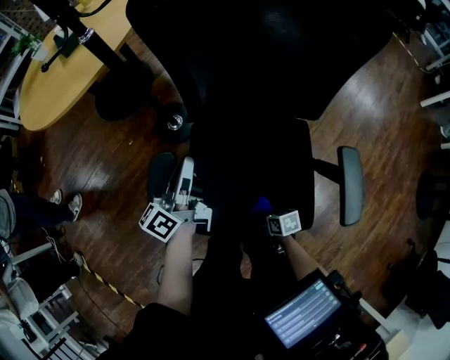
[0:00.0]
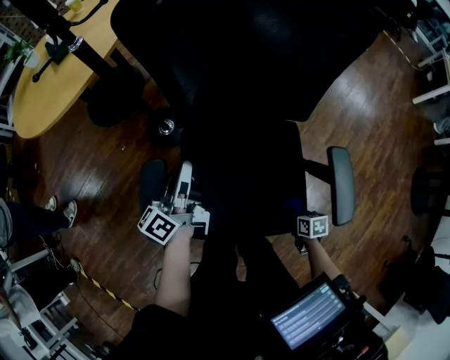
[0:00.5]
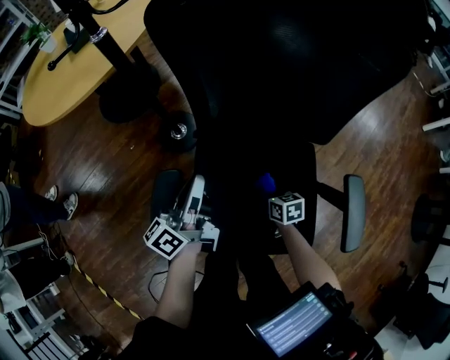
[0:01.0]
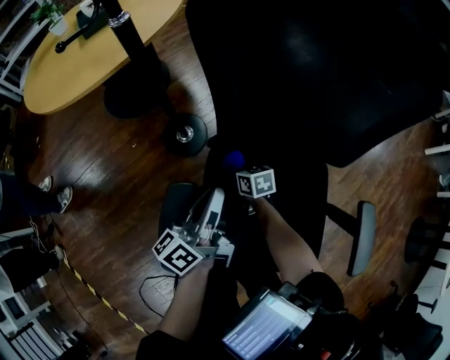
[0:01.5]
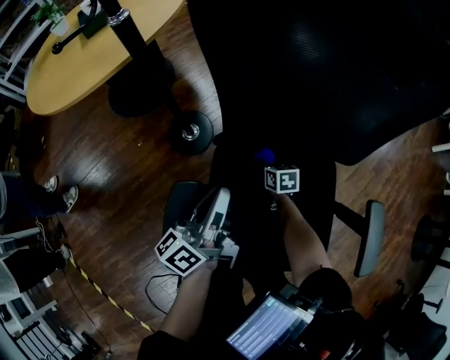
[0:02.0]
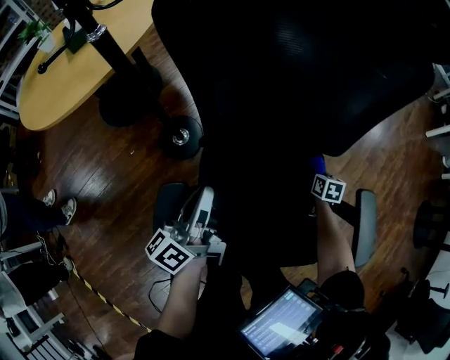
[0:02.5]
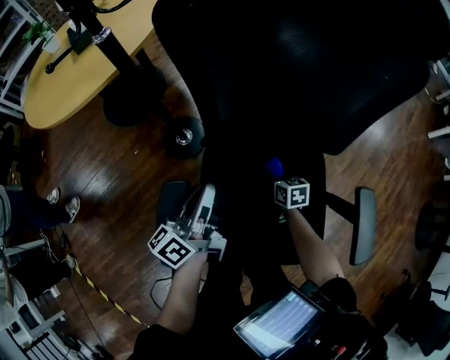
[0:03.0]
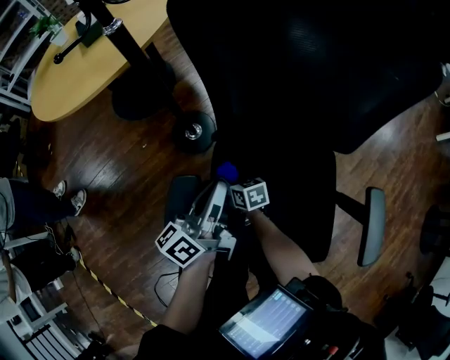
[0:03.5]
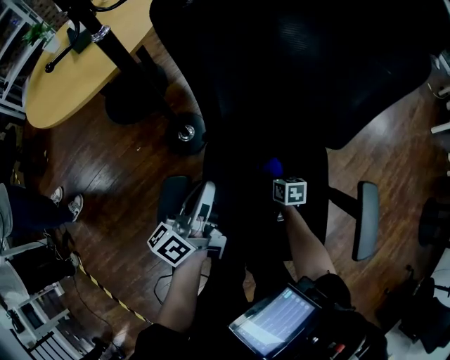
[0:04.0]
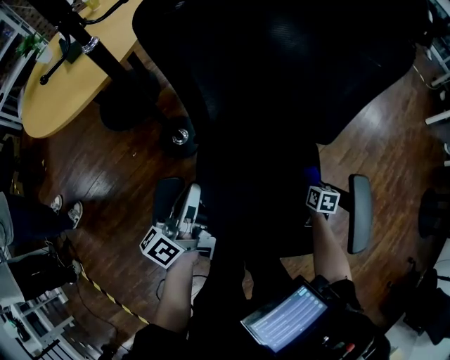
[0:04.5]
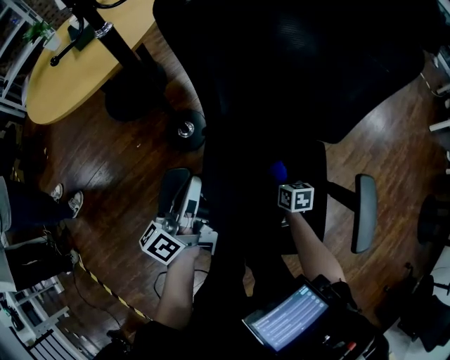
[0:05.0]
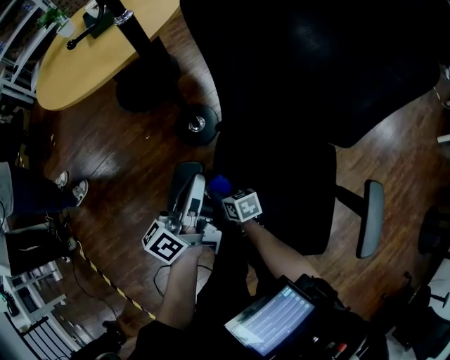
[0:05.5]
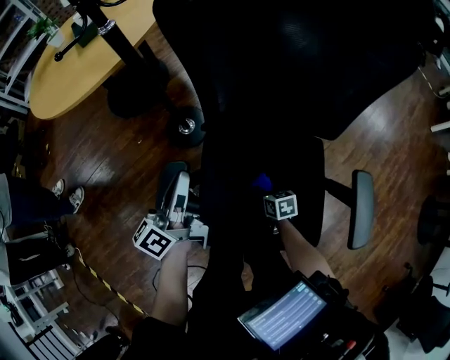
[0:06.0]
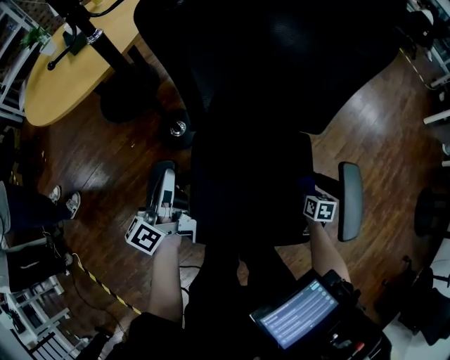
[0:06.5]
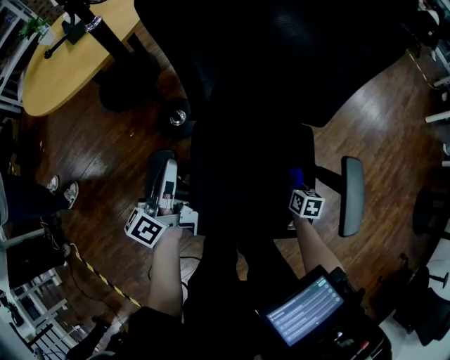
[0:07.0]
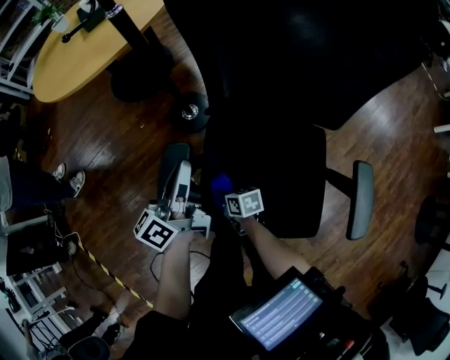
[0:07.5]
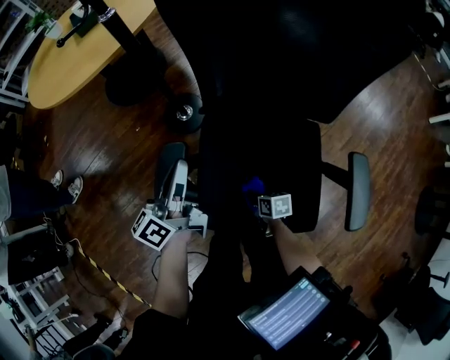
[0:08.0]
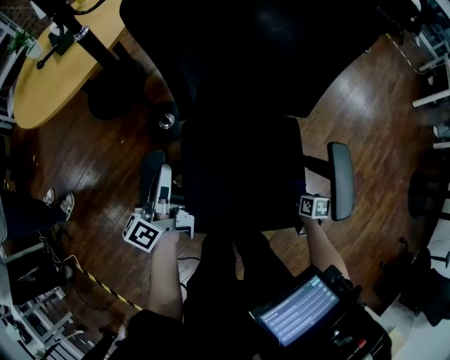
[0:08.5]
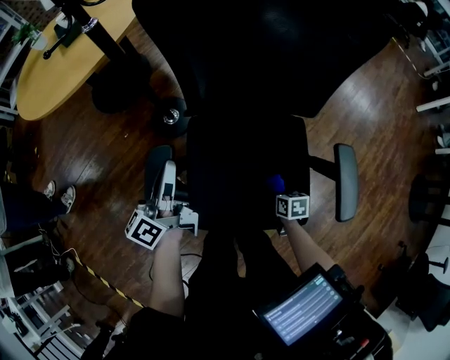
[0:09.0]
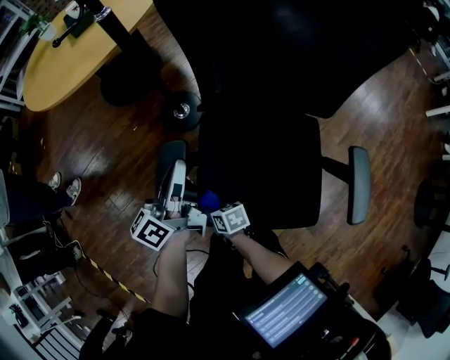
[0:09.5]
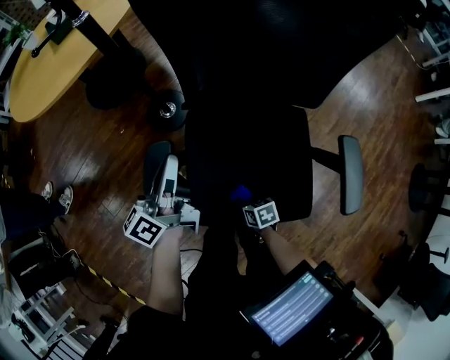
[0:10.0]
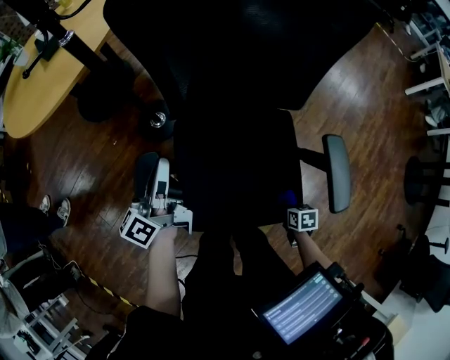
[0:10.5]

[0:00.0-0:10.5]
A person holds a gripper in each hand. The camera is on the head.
0:00.0 to 0:02.0: The right gripper is displaced forward by roughly 35 cm, and turns by approximately 20 degrees.
0:02.0 to 0:04.0: The right gripper goes left and right, some 40 cm each way, reversing 2 times.
0:04.0 to 0:06.5: The right gripper shifts by approximately 20 cm. Meanwhile the left gripper ends up approximately 5 cm from where it was.
0:08.5 to 0:10.5: The right gripper travels backward by approximately 5 cm, and reaches approximately 40 cm to the left, then returns.

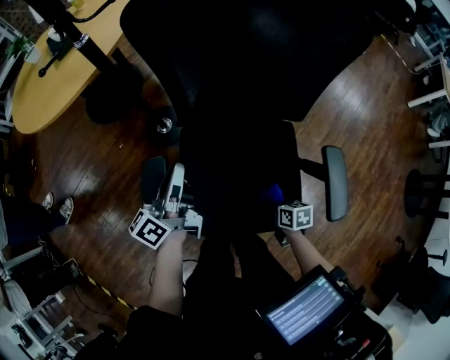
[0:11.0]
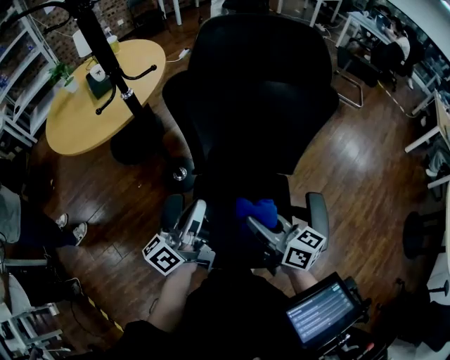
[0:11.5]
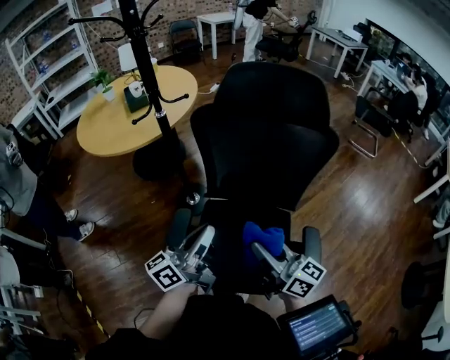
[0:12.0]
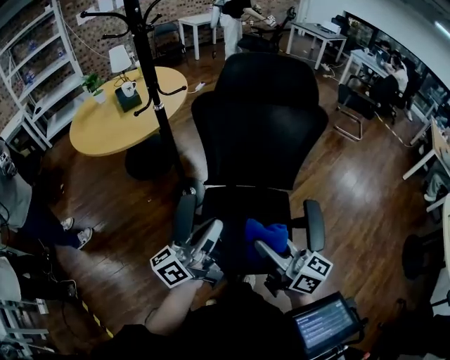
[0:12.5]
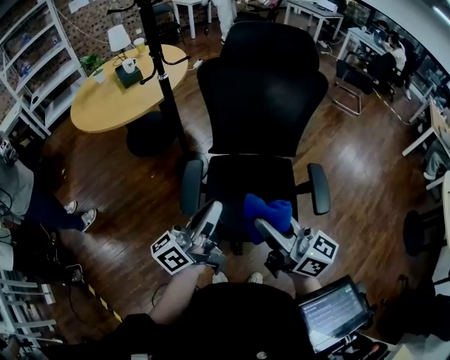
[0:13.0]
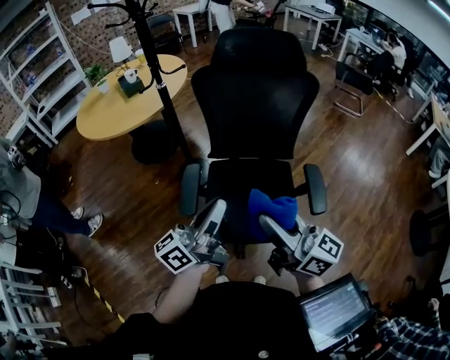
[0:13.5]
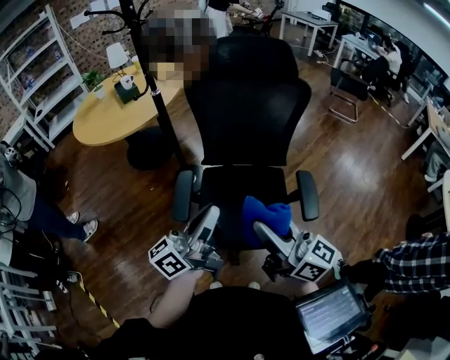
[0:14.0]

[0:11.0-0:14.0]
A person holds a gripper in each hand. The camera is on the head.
0:11.0 to 0:12.5: The left gripper travels upward and backward by some 25 cm, while the right gripper travels upward by about 40 cm, and tips its fingers upward by about 60 degrees.
0:12.5 to 0:14.0: The left gripper is displaced backward by approximately 10 cm. The right gripper is displaced backward and upward by some 10 cm.

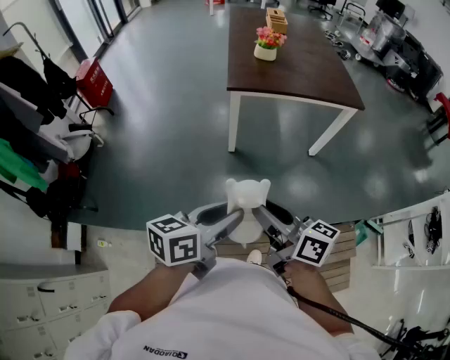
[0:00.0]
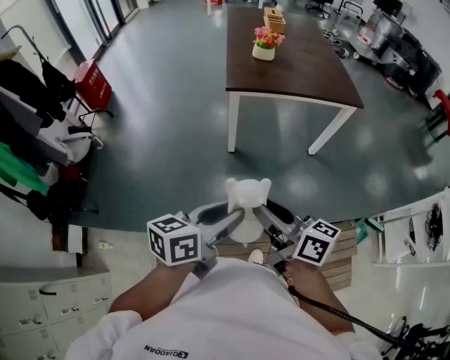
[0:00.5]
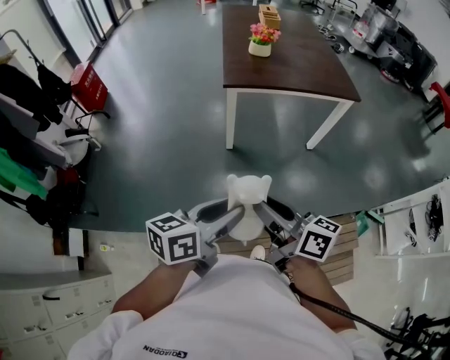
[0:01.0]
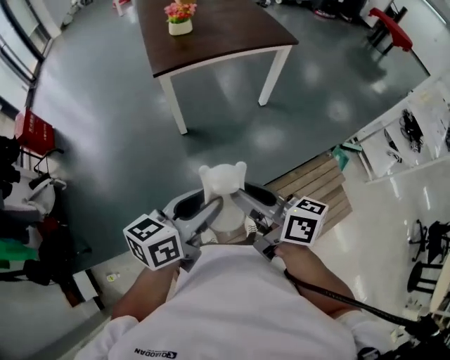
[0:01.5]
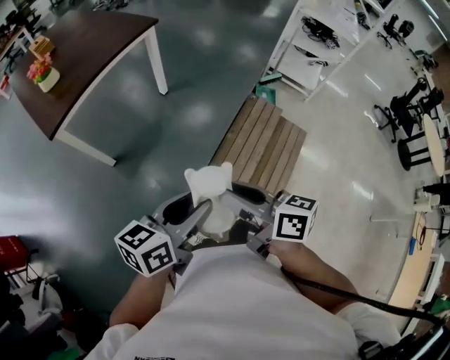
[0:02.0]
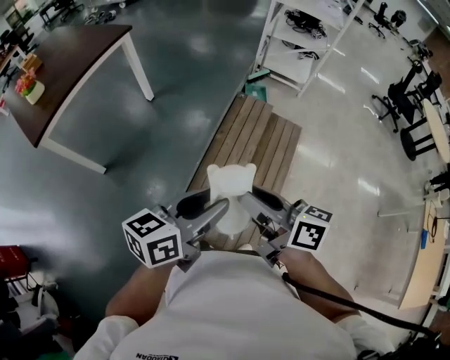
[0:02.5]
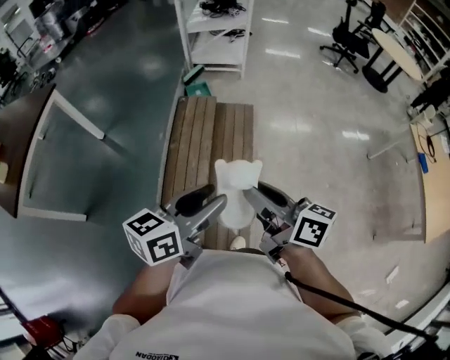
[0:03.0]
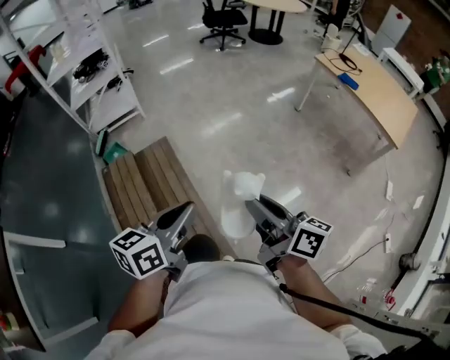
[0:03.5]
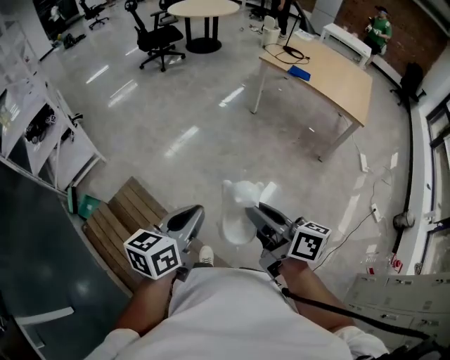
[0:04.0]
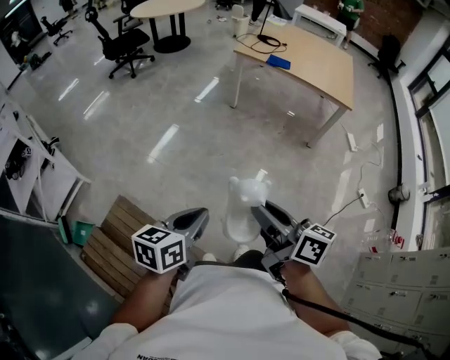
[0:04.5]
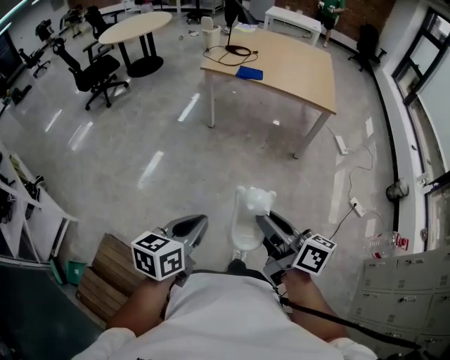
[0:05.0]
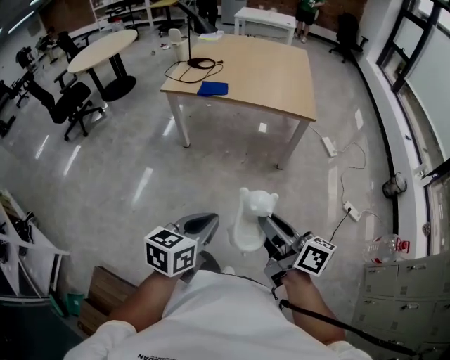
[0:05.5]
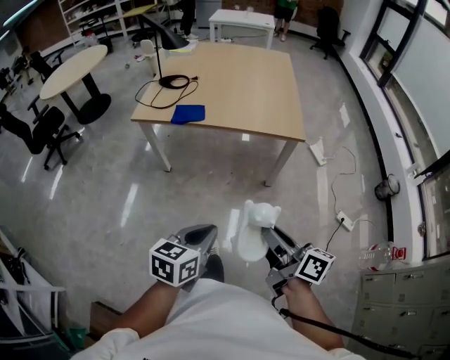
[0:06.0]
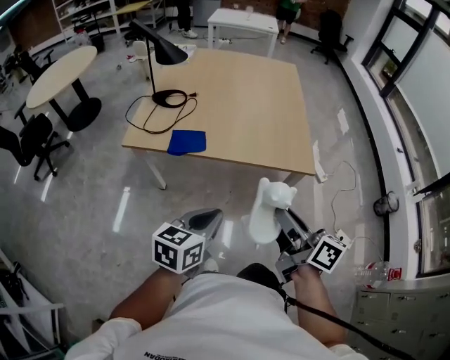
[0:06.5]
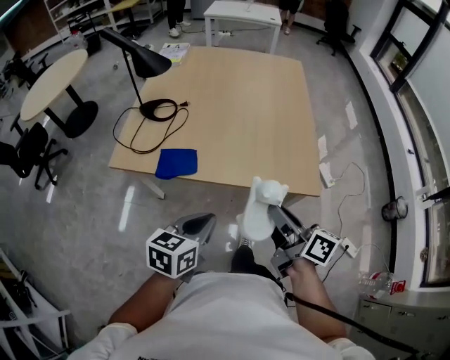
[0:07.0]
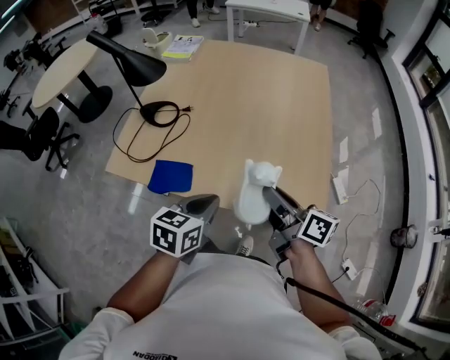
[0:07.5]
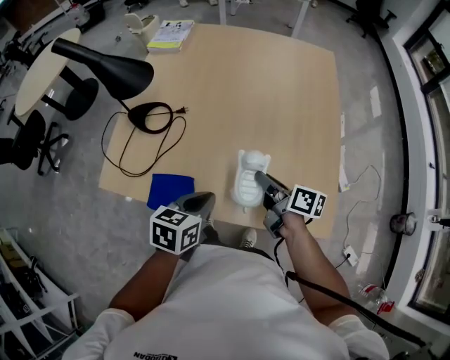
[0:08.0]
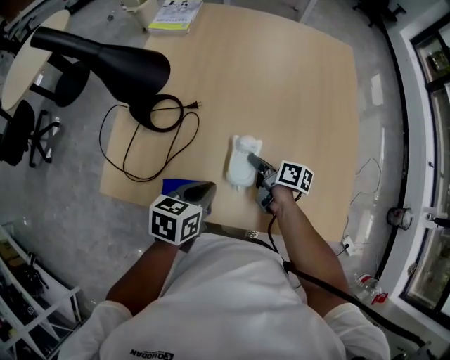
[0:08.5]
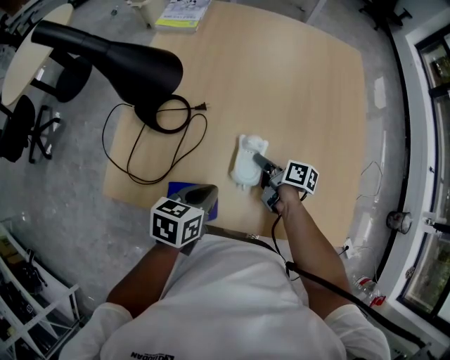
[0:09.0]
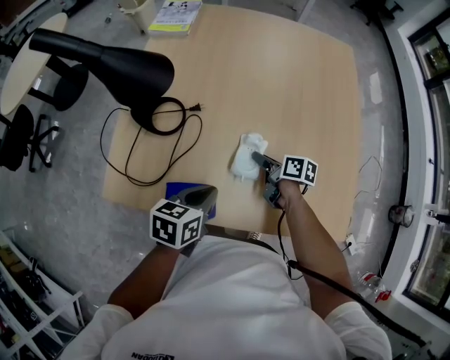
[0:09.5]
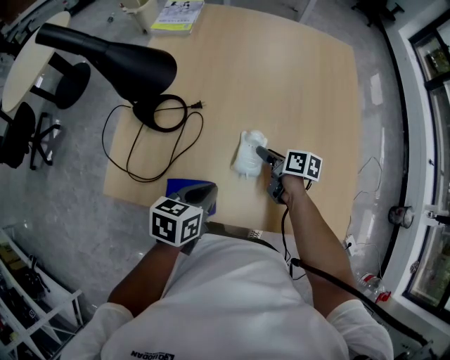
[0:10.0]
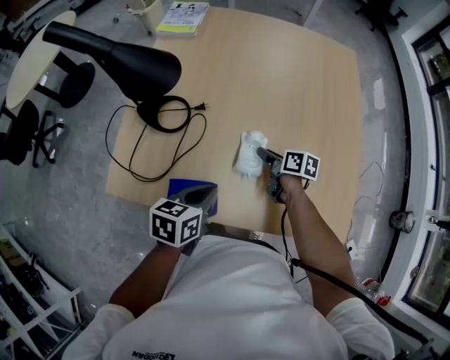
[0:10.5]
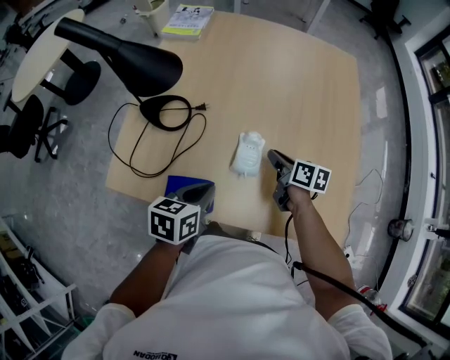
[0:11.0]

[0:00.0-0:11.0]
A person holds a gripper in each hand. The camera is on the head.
0:00.0 to 0:02.0: The left gripper changes place by roughly 15 cm, and turns by approximately 50 degrees. Meanwhile the right gripper changes place by roughly 15 cm, and turns by roughly 50 degrees.
0:02.0 to 0:03.5: Both grippers are carried approximately 50 cm. The right gripper changes its angle by about 70 degrees; the left gripper changes its angle by approximately 50 degrees, and closes up.
0:03.5 to 0:05.5: The two grippers travel together, some 50 cm. The left gripper turns by about 60 degrees; the right gripper swivels about 50 degrees.
0:05.5 to 0:07.5: Both grippers are carried forward, some 60 cm.
0:07.5 to 0:09.0: The left gripper heads forward, to the left and downward, covering some 15 cm. Meanwhile the right gripper travels downward, forward and to the left by some 30 cm, and swivels roughly 30 degrees.
0:09.0 to 0:11.0: The right gripper moves upward, roughly 5 cm, swivels some 20 degrees, and opens and closes again.

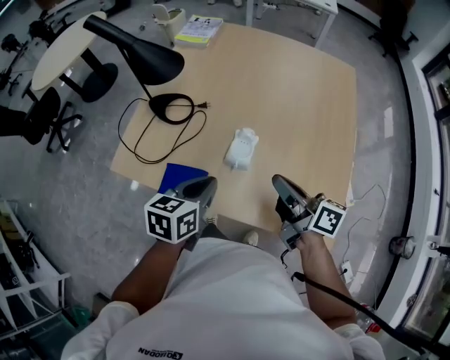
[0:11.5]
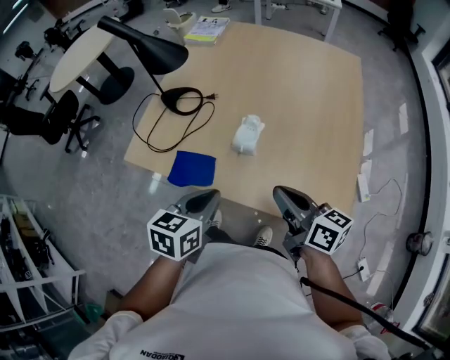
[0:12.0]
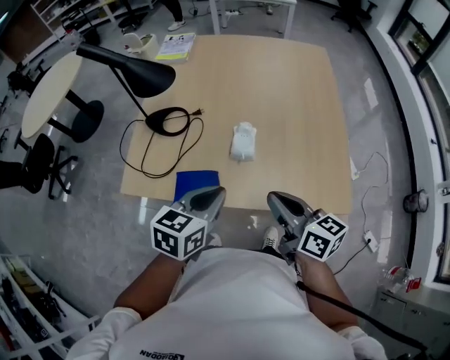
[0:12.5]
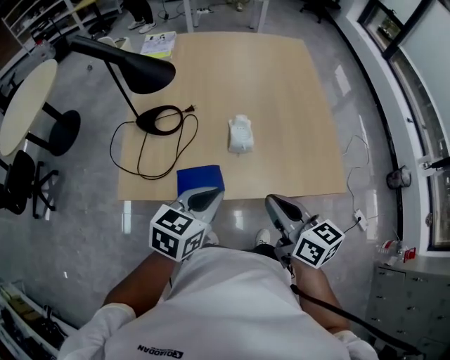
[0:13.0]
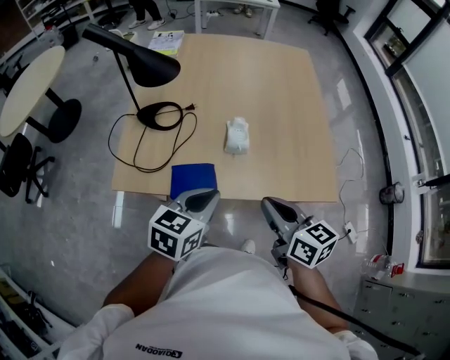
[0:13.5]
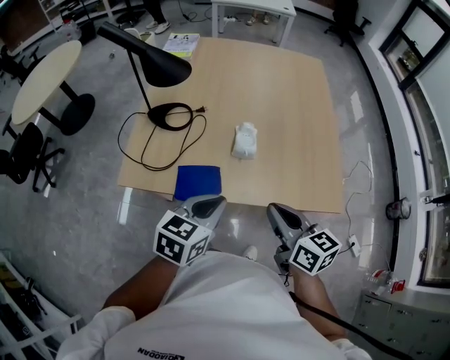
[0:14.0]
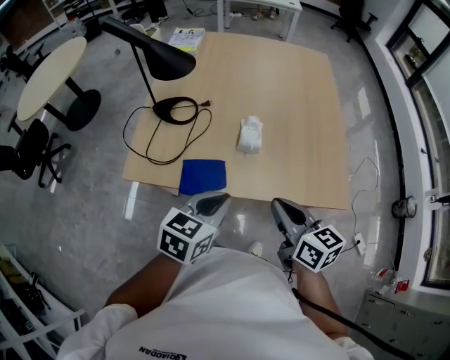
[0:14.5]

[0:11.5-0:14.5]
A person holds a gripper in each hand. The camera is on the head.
0:11.5 to 0:13.0: The right gripper moves approximately 15 cm, and changes its angle by some 40 degrees; the left gripper changes place by roughly 10 cm, and changes its angle by approximately 30 degrees.
0:13.0 to 0:14.5: There are only small adjustments of the grippers.
